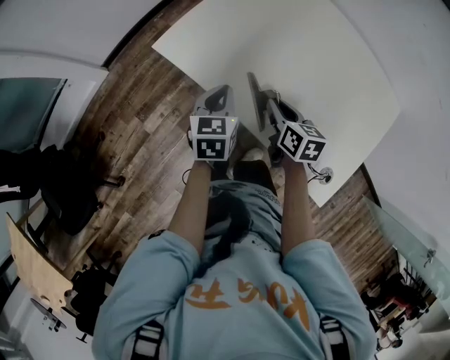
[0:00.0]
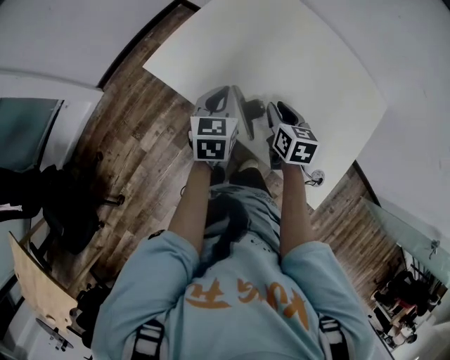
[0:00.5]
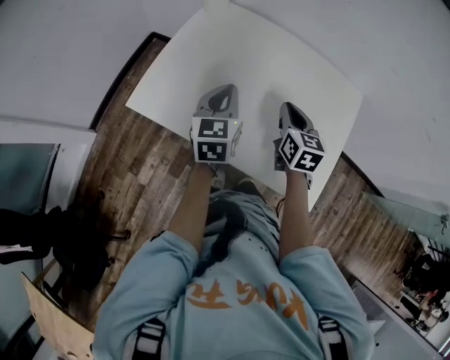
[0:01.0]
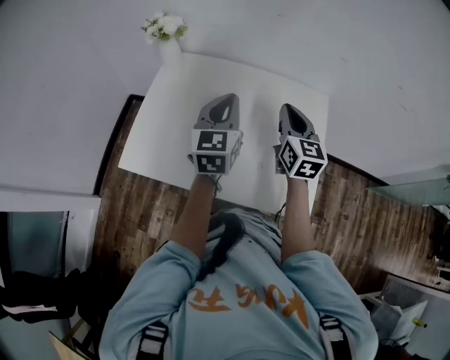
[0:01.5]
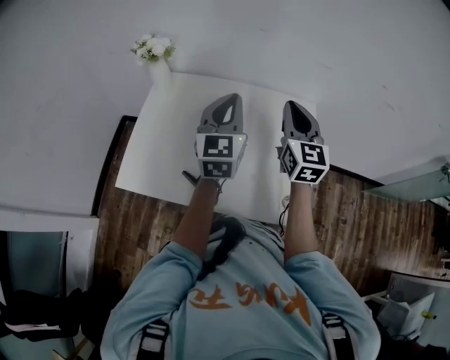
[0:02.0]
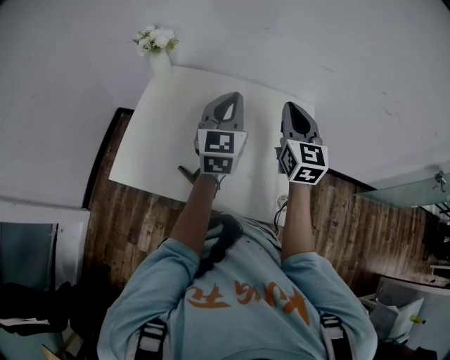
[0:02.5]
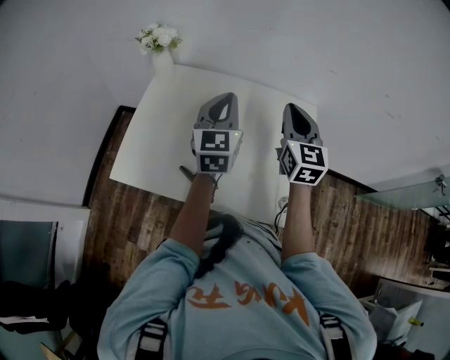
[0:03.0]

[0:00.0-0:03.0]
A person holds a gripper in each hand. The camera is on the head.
0:00.0 to 0:01.5: The right gripper goes some 25 cm upward, and swivels approximately 50 degrees, while the left gripper changes place by about 30 cm, and changes its angle by roughly 40 degrees.
0:01.5 to 0:03.0: The right gripper moves upward, approximately 5 cm.

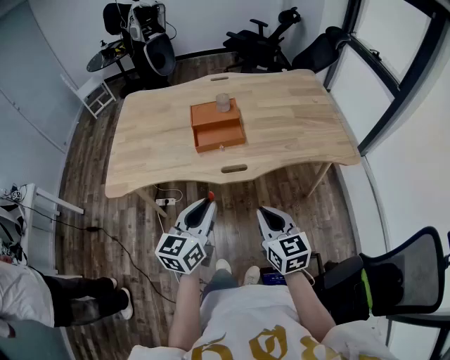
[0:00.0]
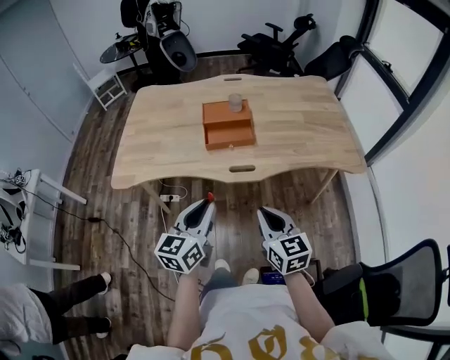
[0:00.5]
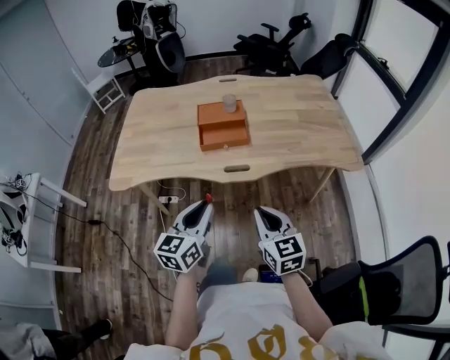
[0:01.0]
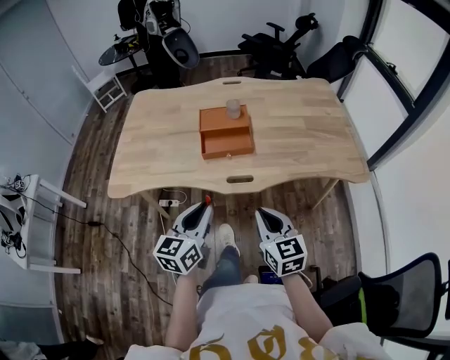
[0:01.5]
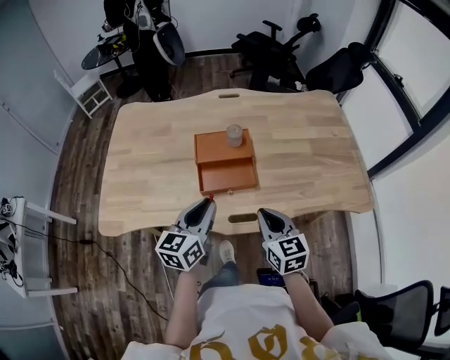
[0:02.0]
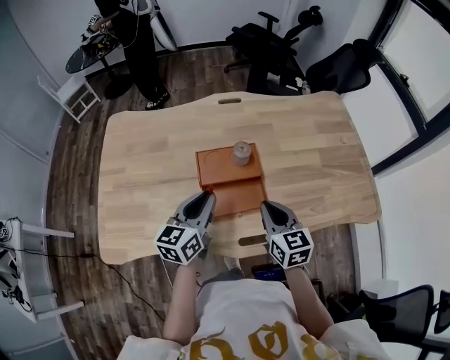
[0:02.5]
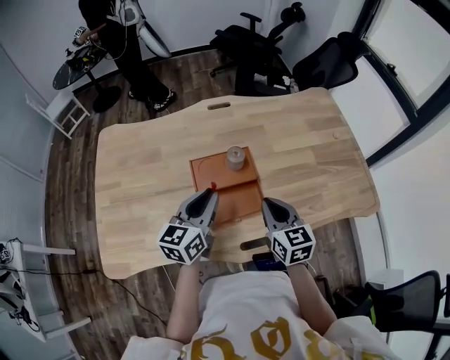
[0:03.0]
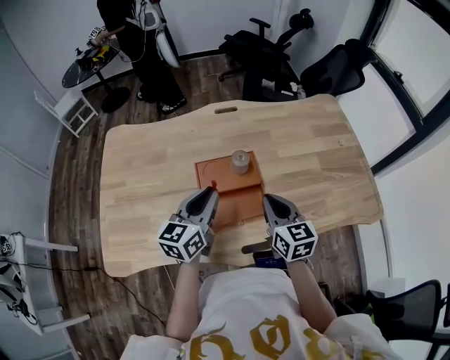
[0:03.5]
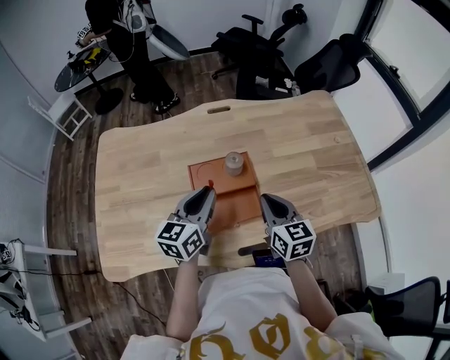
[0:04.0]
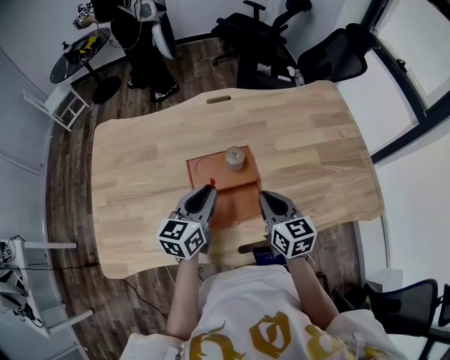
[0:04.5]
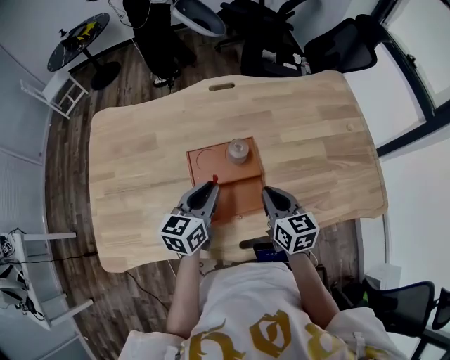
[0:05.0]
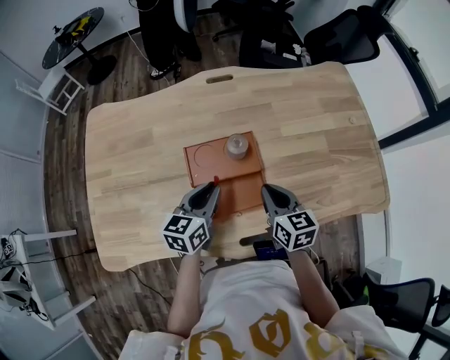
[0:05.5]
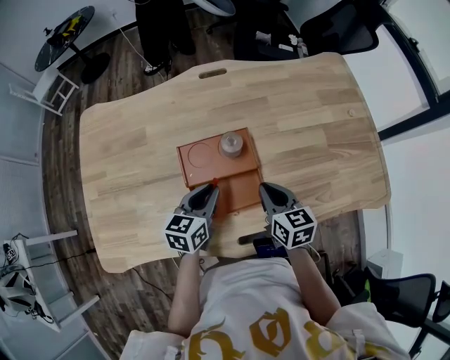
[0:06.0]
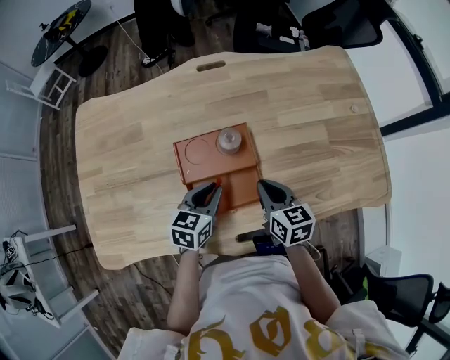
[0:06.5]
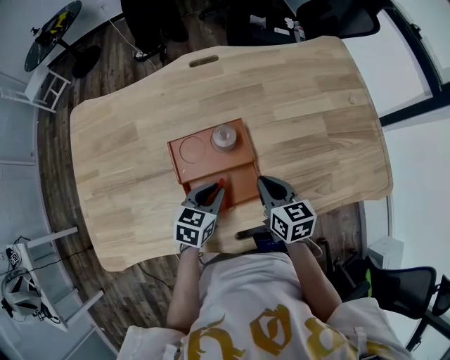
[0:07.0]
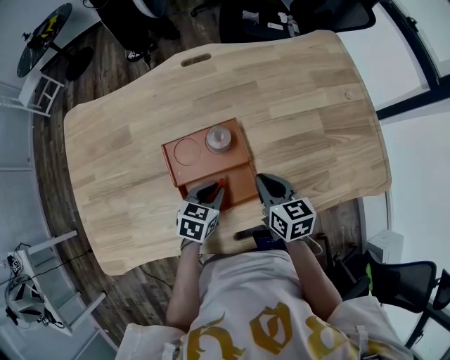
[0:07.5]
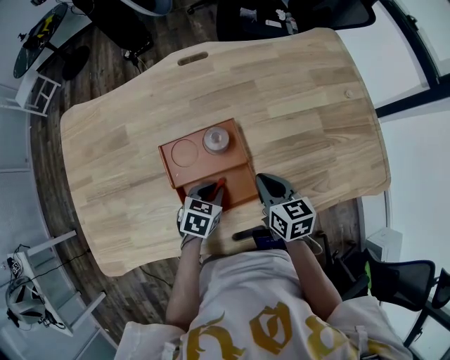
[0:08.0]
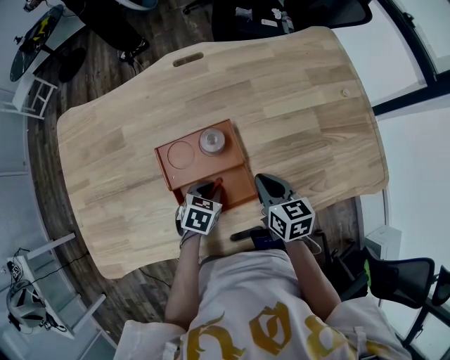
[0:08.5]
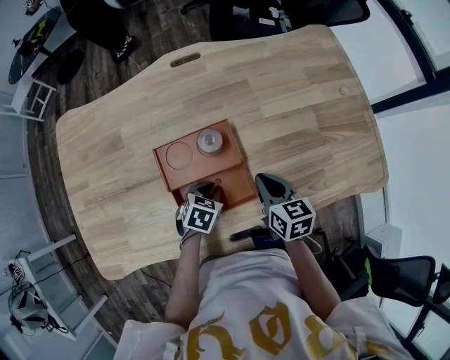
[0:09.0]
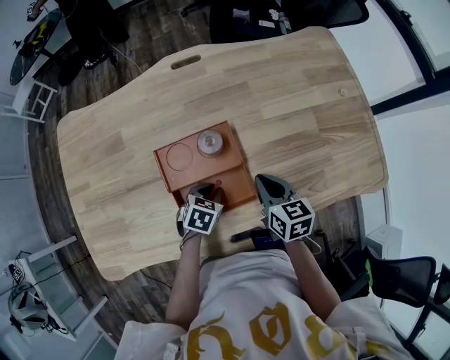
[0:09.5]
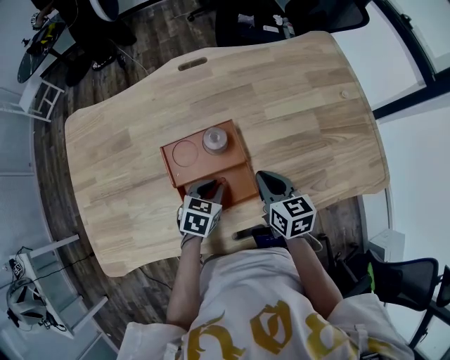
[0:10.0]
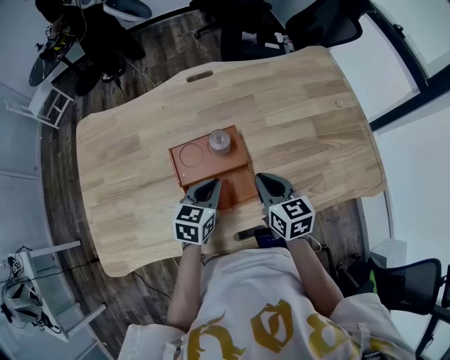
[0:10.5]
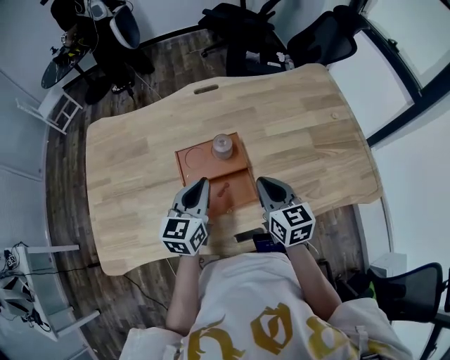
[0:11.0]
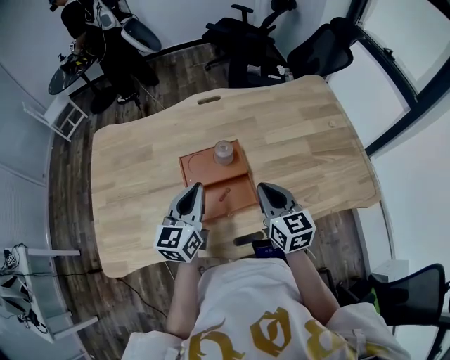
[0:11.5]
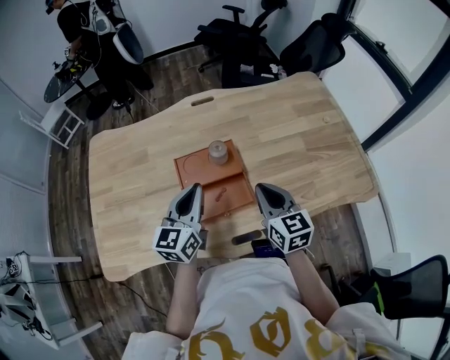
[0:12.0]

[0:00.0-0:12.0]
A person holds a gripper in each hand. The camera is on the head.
0:00.0 to 0:02.0: The two grippers go roughly 25 cm forward.
0:02.0 to 0:04.0: Both grippers travel together forward, roughly 20 cm.
0:04.0 to 0:06.0: Both grippers travel together downward, about 10 cm.
0:06.0 to 0:08.0: The left gripper moves downward, about 10 cm, and changes its angle by approximately 30 degrees.
0:08.0 to 0:10.0: The grippers stay close to where they were, moving slightly.
0:10.0 to 0:12.0: The left gripper moves upward, some 20 cm, and tilts its fingers roughly 40 degrees upward. Meanwhile the right gripper is displaced upward and backward by about 15 cm.

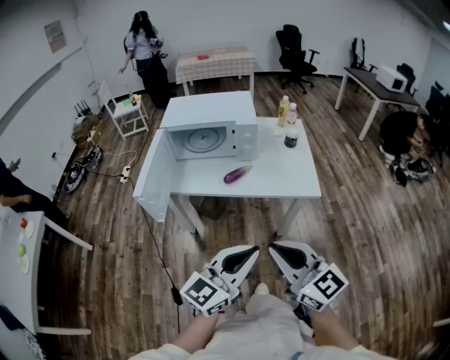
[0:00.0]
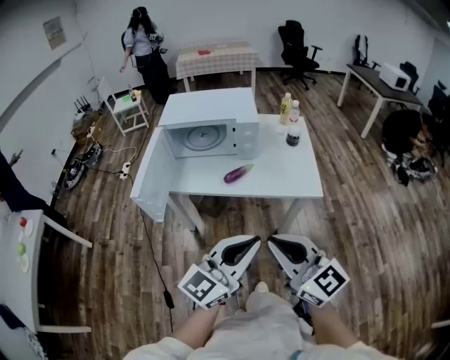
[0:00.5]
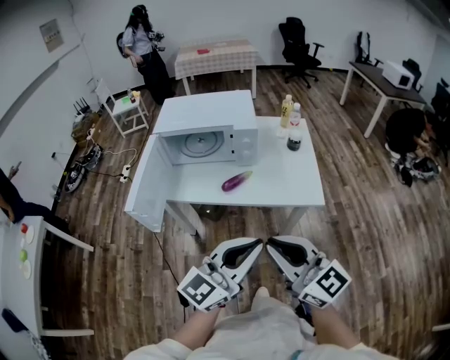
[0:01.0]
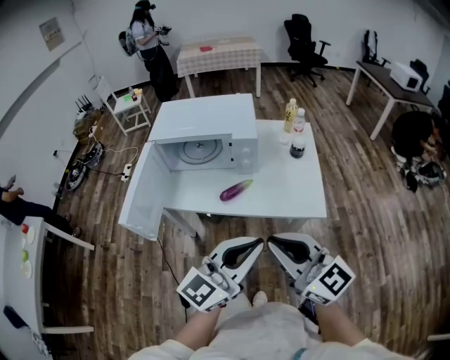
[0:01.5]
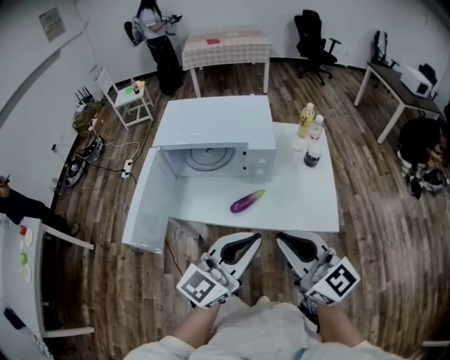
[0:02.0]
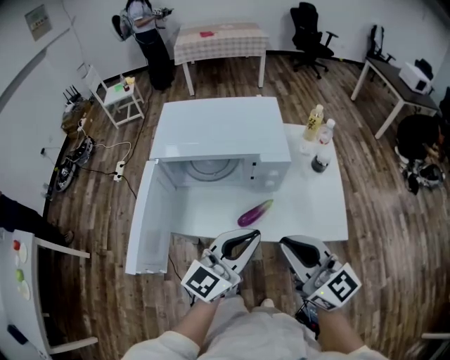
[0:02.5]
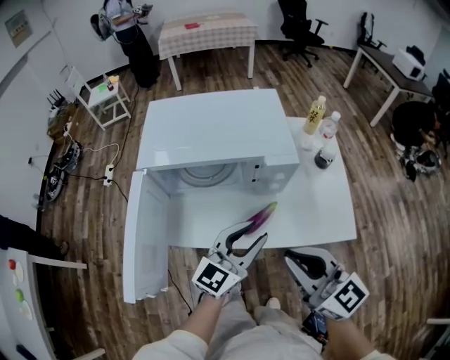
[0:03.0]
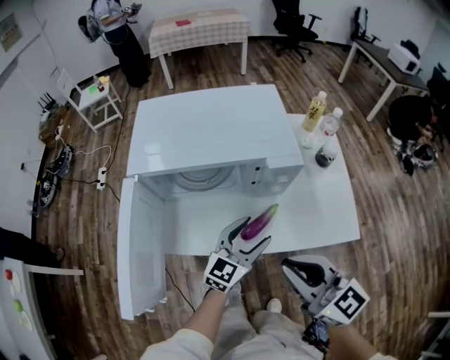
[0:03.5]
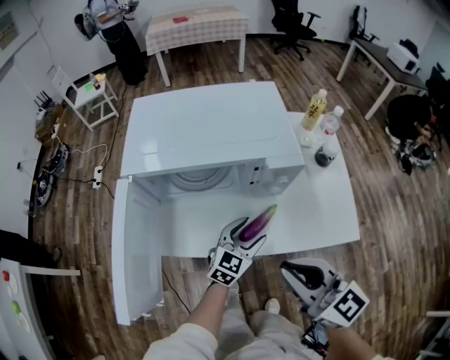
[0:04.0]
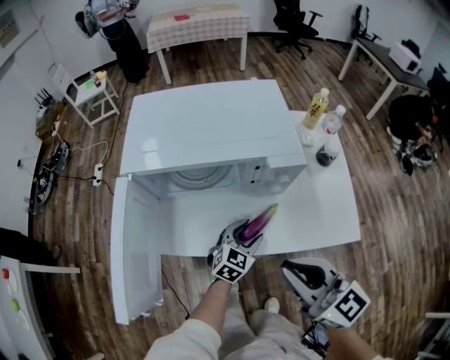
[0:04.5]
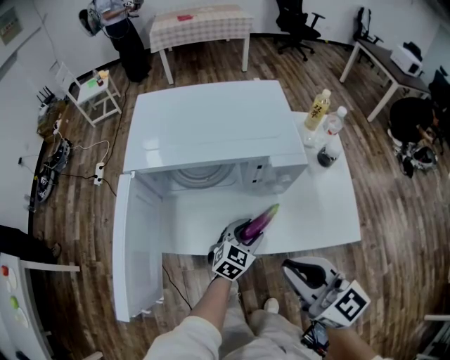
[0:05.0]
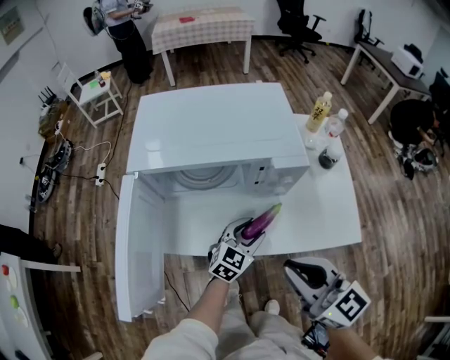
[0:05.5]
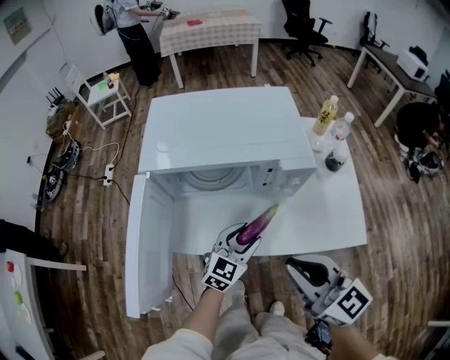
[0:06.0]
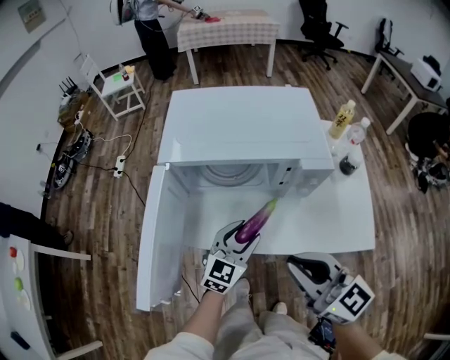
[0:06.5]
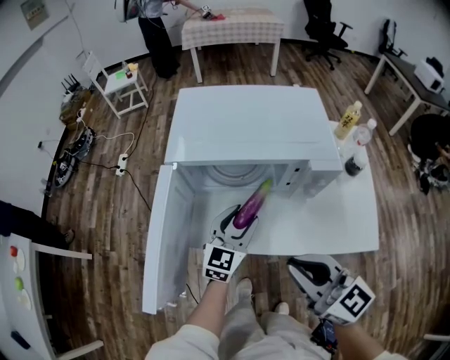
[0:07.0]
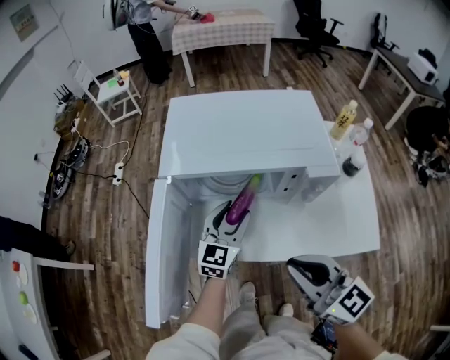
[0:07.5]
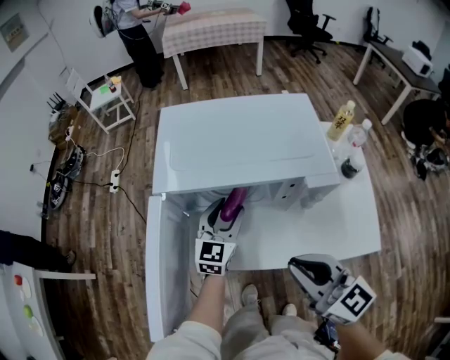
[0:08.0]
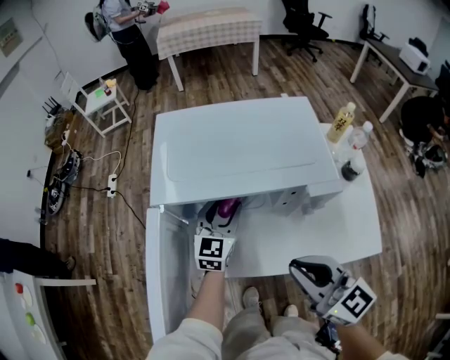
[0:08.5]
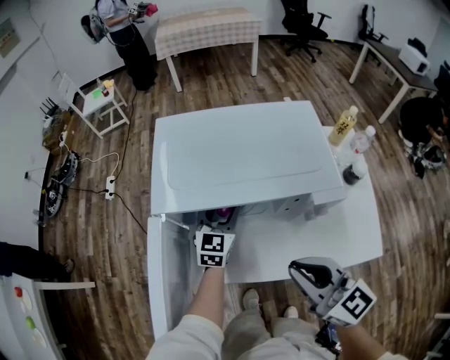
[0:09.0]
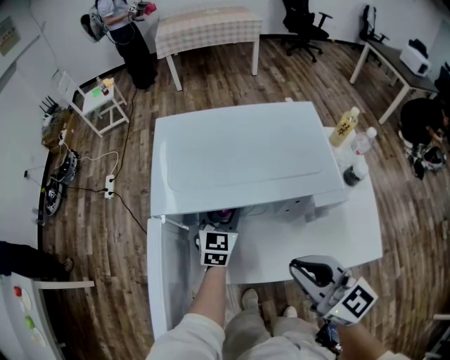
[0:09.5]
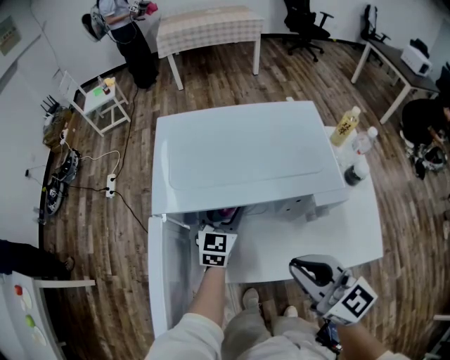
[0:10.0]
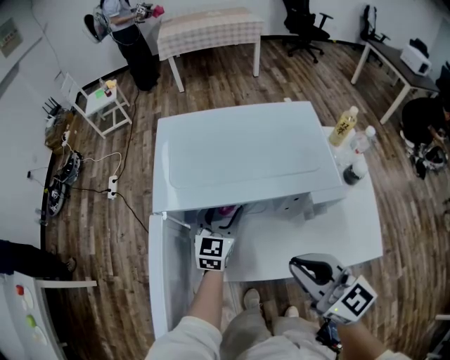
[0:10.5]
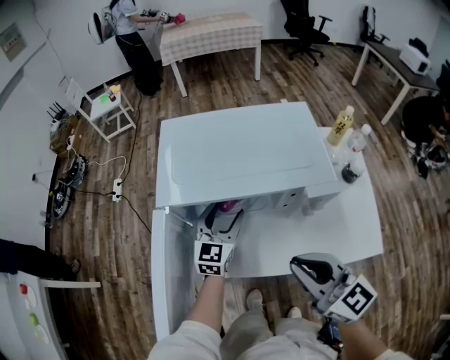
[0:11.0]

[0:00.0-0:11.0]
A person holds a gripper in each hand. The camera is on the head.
0:00.0 to 0:02.0: The grippers both shift forward by some 20 cm.
0:02.0 to 0:03.5: The left gripper is displaced downward and forward by approximately 30 cm, and opens; the right gripper is displaced forward, downward and to the left by roughly 15 cm.
0:03.5 to 0:05.5: The left gripper travels downward by approximately 10 cm.
0:05.5 to 0:07.5: The left gripper shifts some 20 cm to the left, forward and upward, and changes its angle by about 30 degrees, while the right gripper moves to the left, roughly 5 cm.
0:07.5 to 0:09.0: The right gripper goes about 5 cm forward; the left gripper is displaced forward by approximately 10 cm.
0:09.0 to 0:11.0: The grippers make only small movements.

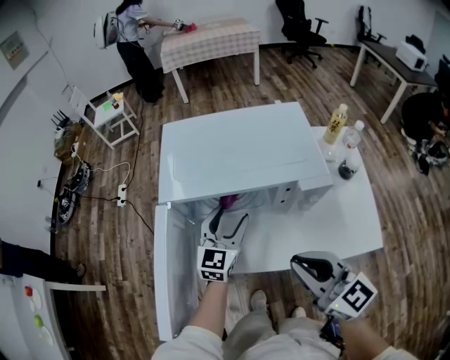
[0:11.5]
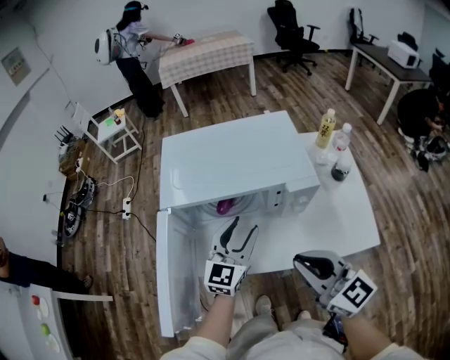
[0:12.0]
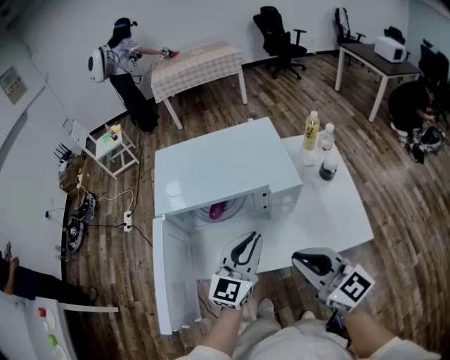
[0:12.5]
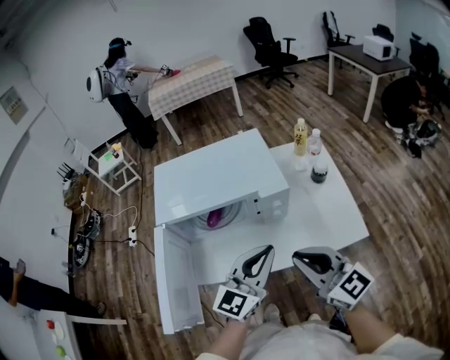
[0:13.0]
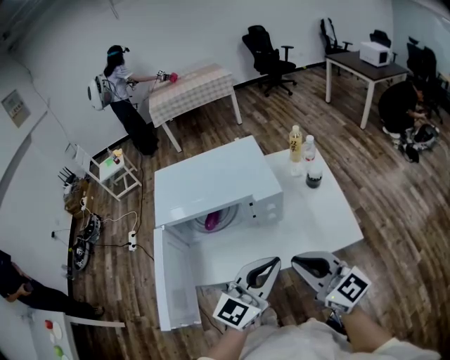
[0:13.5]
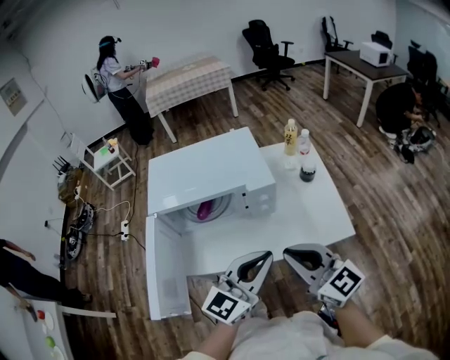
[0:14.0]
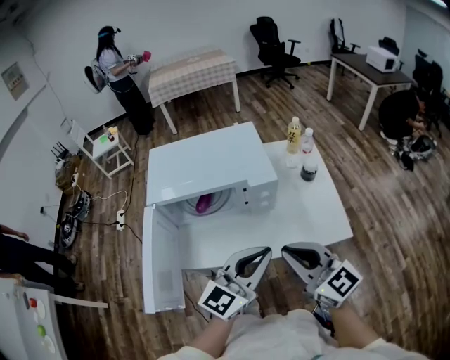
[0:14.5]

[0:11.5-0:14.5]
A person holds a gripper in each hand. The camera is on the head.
0:11.5 to 0:13.0: The right gripper heads to the right, covering roughly 5 cm; the left gripper moves backward, to the right and upward, some 25 cm, rotates some 30 degrees, and closes.
0:13.0 to 0:14.5: The left gripper heads backward, covering about 5 cm.
